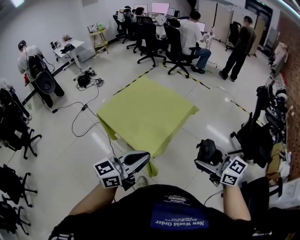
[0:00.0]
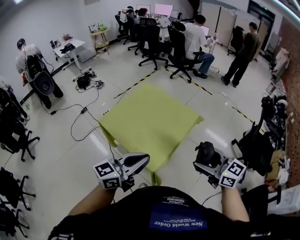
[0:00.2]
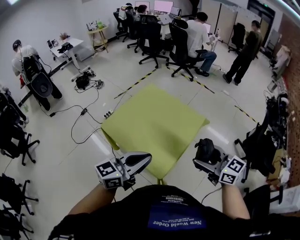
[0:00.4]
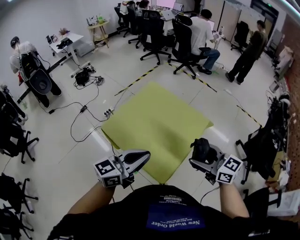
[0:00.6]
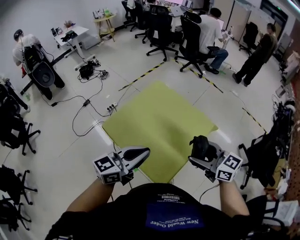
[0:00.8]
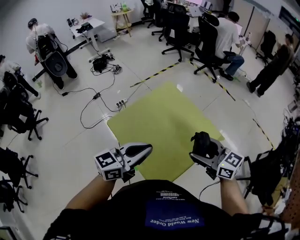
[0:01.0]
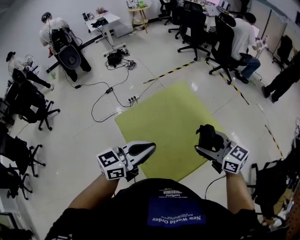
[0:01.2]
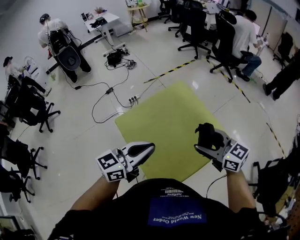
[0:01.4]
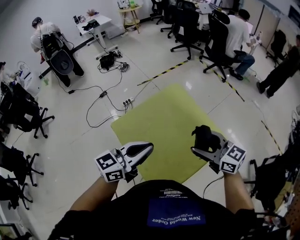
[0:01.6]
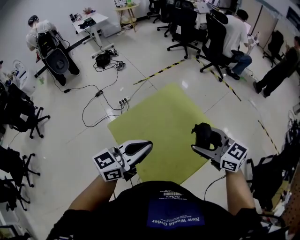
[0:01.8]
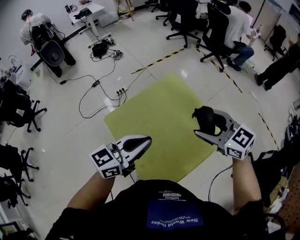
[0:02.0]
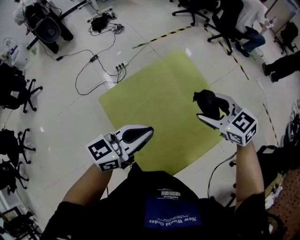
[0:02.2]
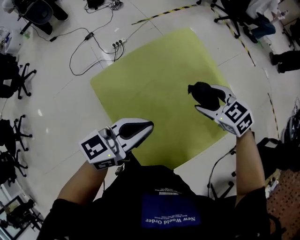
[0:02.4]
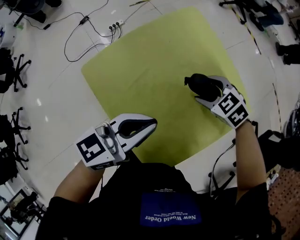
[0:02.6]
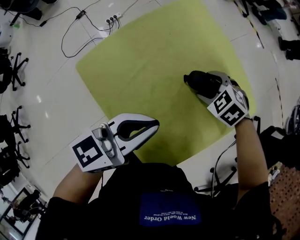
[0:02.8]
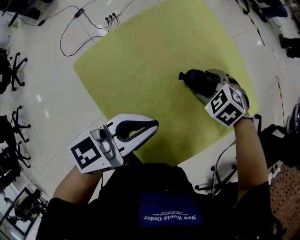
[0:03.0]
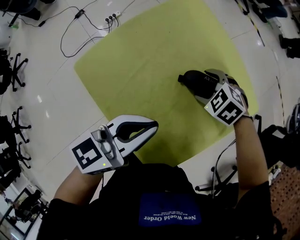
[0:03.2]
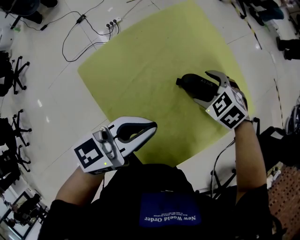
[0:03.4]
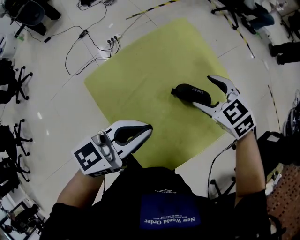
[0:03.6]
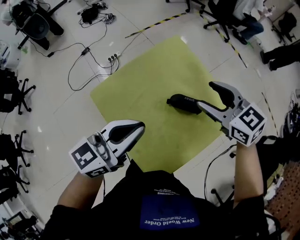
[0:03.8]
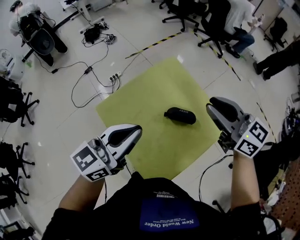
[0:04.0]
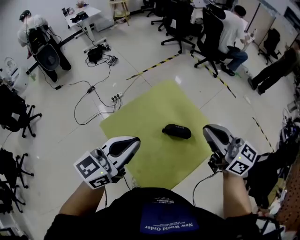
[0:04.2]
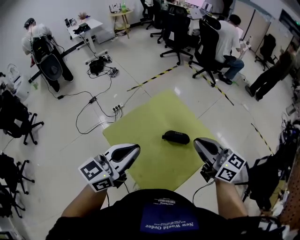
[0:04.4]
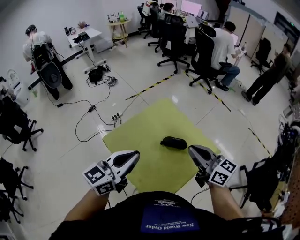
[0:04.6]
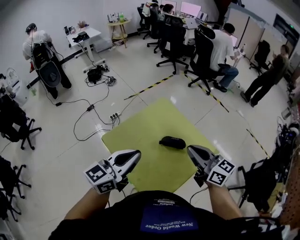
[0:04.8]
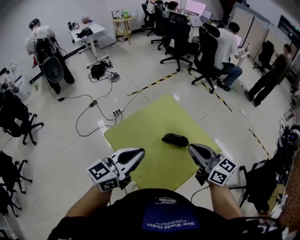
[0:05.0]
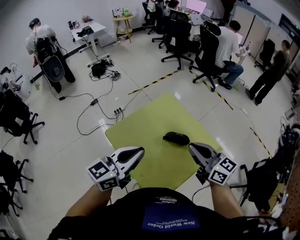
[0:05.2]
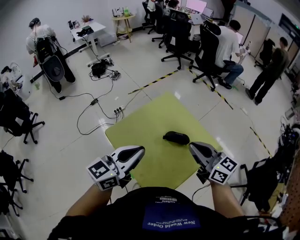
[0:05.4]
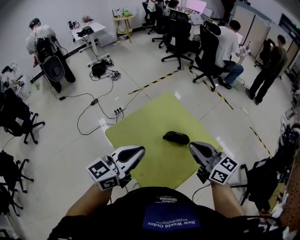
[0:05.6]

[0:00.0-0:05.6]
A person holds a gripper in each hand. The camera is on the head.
0:00.0 to 0:01.4: Both grippers travel together forward, some 35 cm. The right gripper changes its angle by roughly 20 degrees.
0:01.4 to 0:02.8: The right gripper moves downward, about 30 cm, and tilts its fingers roughly 60 degrees downward, while the left gripper shifts some 20 cm downward and forward.
0:02.8 to 0:04.2: The right gripper shifts roughly 40 cm upward, tips its fingers upward by some 70 degrees, and closes its fingers, while the left gripper goes about 20 cm upward.
0:04.2 to 0:05.6: The right gripper shifts approximately 5 cm backward.

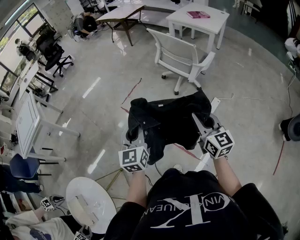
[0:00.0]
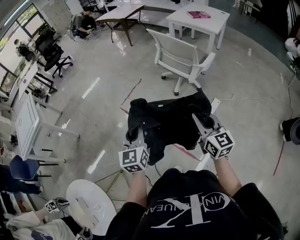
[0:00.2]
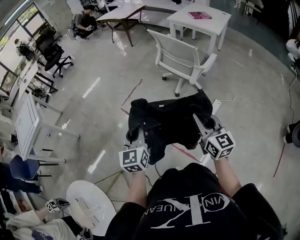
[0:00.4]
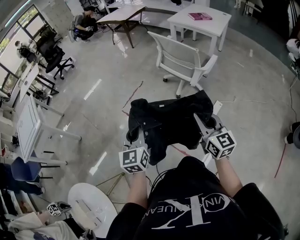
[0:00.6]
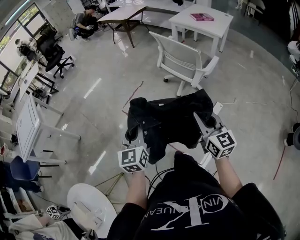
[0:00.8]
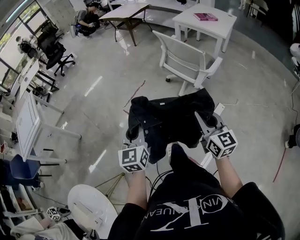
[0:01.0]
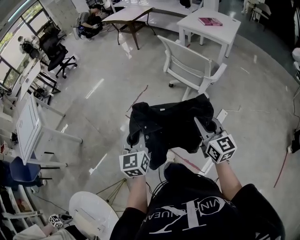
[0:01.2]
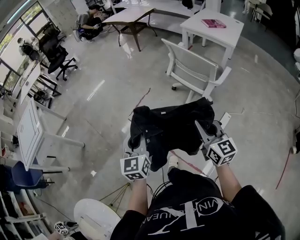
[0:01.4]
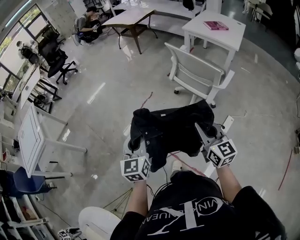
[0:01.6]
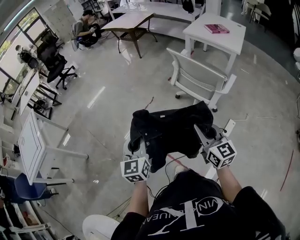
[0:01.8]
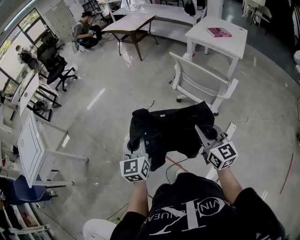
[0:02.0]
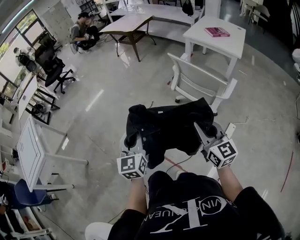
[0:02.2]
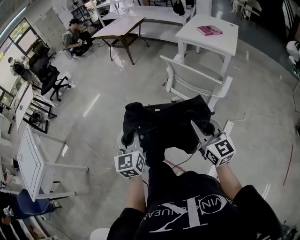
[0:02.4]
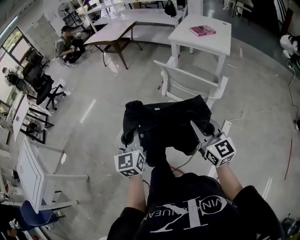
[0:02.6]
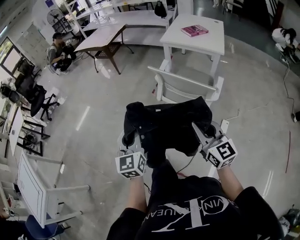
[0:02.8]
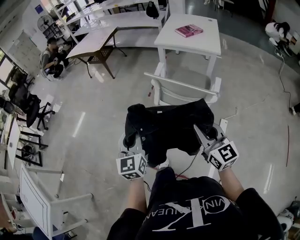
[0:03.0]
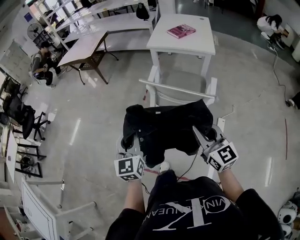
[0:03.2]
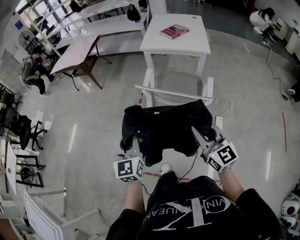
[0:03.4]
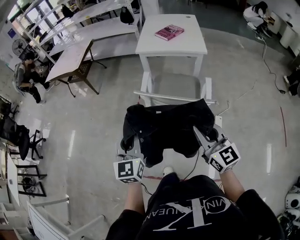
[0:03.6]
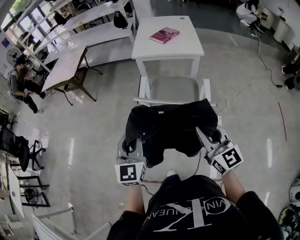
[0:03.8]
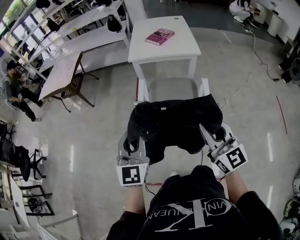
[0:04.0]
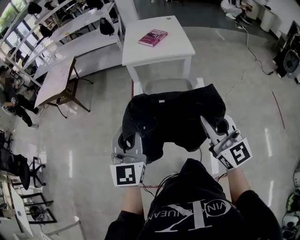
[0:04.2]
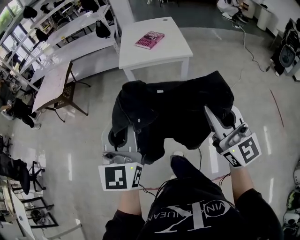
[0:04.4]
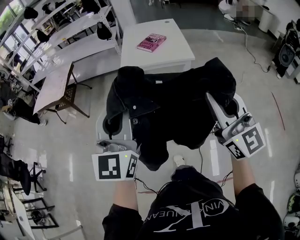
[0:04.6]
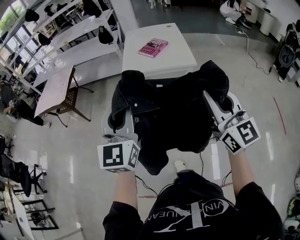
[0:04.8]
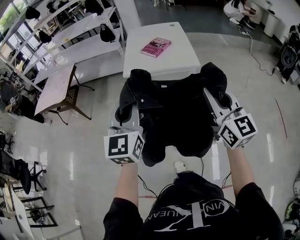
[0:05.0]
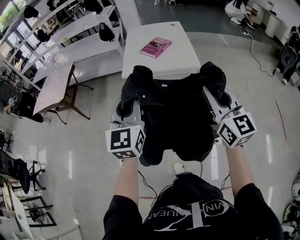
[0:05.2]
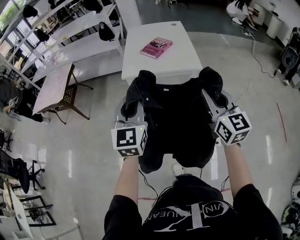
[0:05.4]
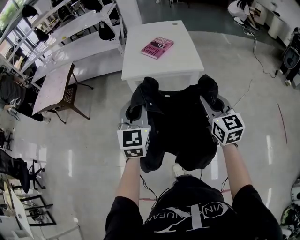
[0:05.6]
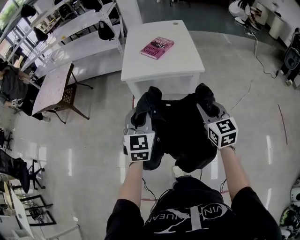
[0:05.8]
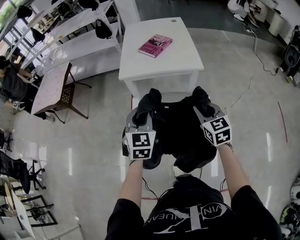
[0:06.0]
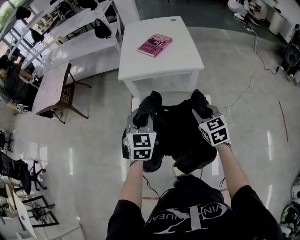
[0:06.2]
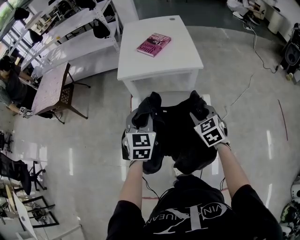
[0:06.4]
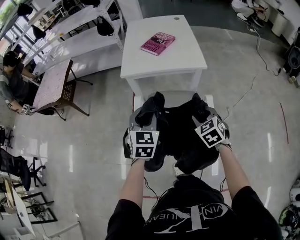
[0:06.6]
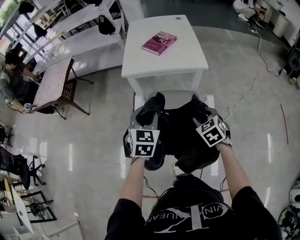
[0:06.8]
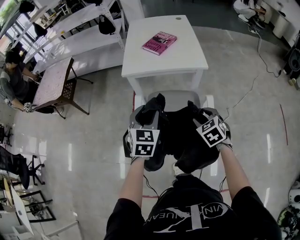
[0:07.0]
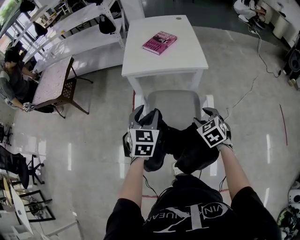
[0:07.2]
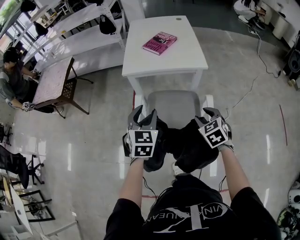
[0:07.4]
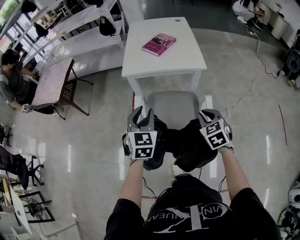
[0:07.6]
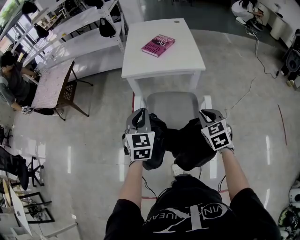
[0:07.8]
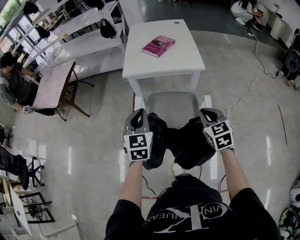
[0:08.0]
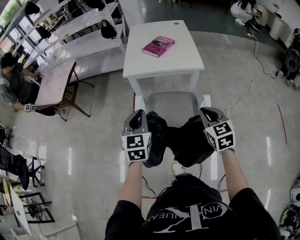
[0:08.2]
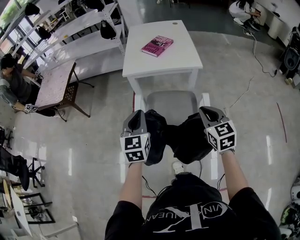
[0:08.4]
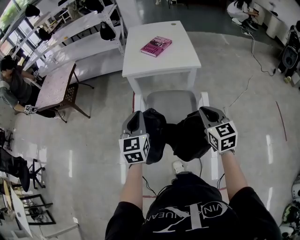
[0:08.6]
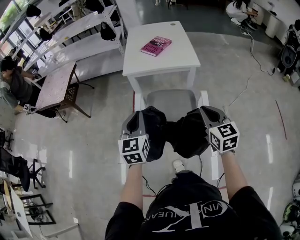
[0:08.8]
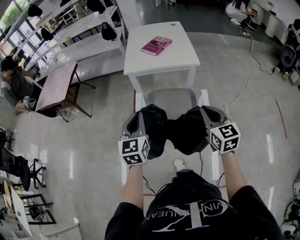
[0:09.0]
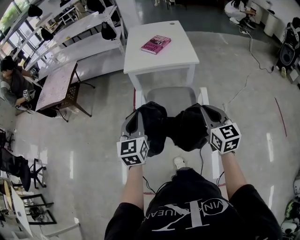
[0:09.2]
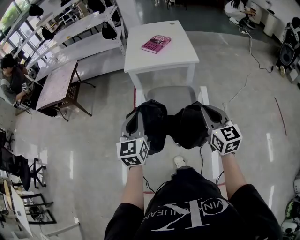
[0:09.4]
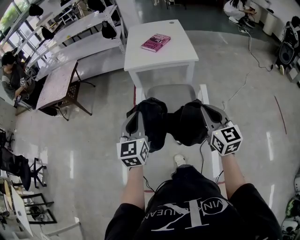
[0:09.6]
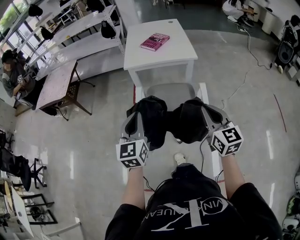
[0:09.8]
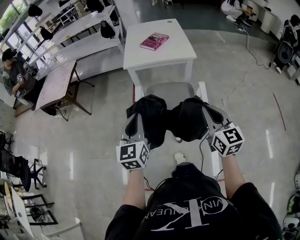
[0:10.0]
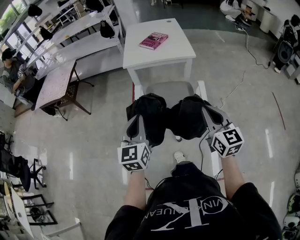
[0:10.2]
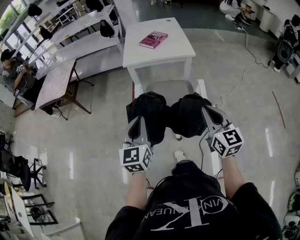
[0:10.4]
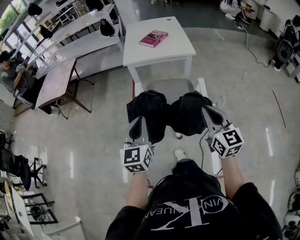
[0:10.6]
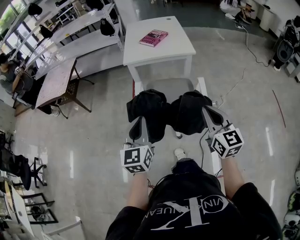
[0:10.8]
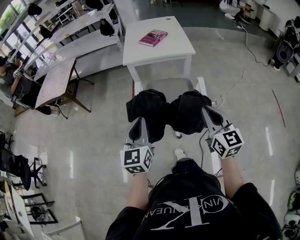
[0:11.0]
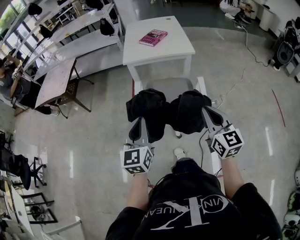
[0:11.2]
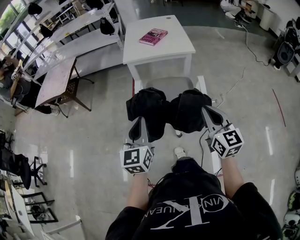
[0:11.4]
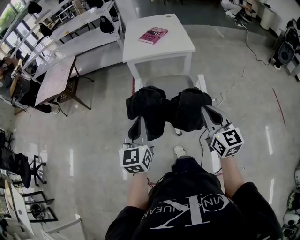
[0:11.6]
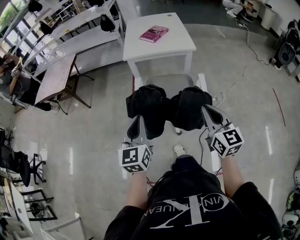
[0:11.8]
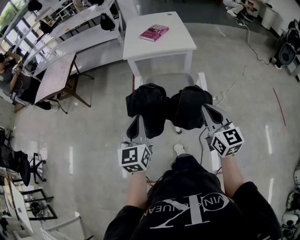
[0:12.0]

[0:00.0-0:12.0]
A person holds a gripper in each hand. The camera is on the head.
0:00.0 to 0:01.6: The two grippers go approximately 20 cm forward.
0:01.6 to 0:03.0: The left gripper goes about 30 cm forward, while the right gripper moves forward, some 20 cm.
0:03.0 to 0:04.4: The left gripper ends up about 30 cm from where it was, and turns by some 30 degrees, while the right gripper travels upward by some 15 cm, and turns by some 30 degrees.
0:04.4 to 0:06.0: Both grippers move forward and downward, about 35 cm. The left gripper changes its angle by approximately 30 degrees. Meanwhile the right gripper angles its fingers downward, by some 40 degrees.
0:06.0 to 0:07.6: The right gripper changes place by some 5 cm, turns by about 20 degrees, and opens and closes again.
0:07.6 to 0:09.0: The right gripper moves backward and upward, roughly 15 cm, and rotates approximately 30 degrees; the left gripper is displaced backward by roughly 10 cm, and closes up.
0:09.0 to 0:10.4: The two grippers go about 10 cm backward.
0:10.4 to 0:12.0: The grippers stay close to where they were, moving slightly.

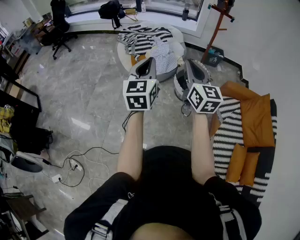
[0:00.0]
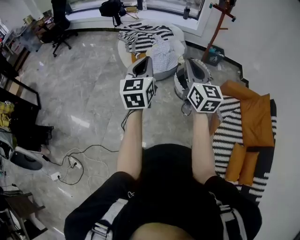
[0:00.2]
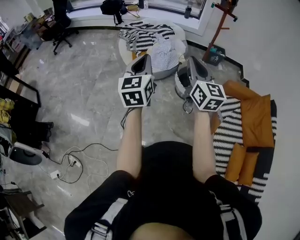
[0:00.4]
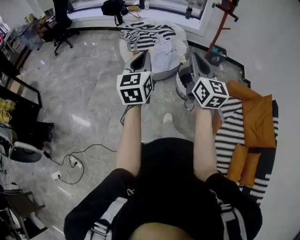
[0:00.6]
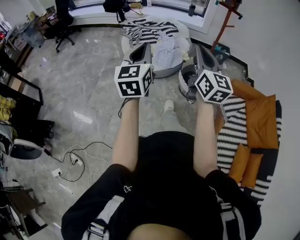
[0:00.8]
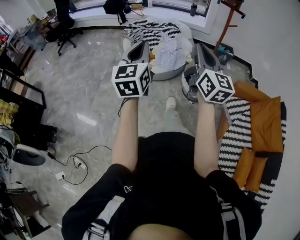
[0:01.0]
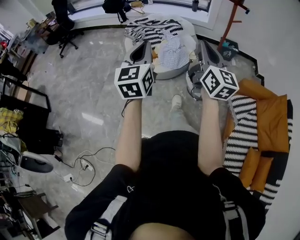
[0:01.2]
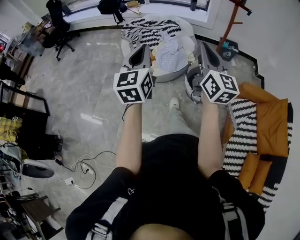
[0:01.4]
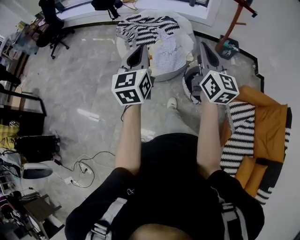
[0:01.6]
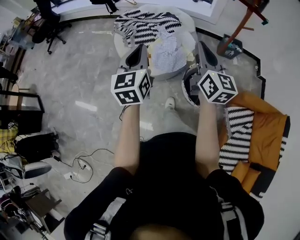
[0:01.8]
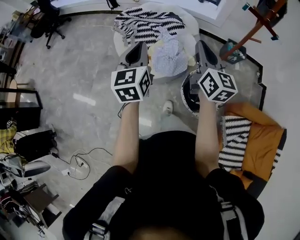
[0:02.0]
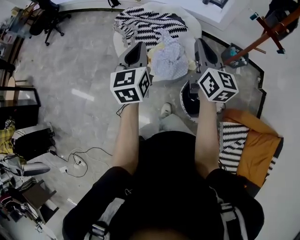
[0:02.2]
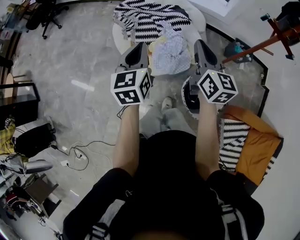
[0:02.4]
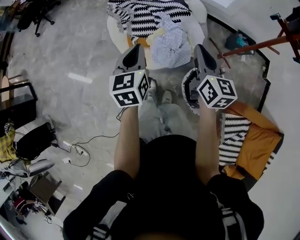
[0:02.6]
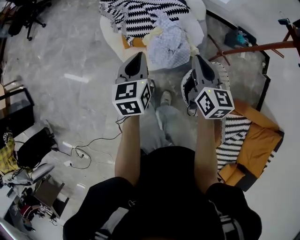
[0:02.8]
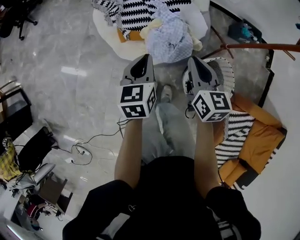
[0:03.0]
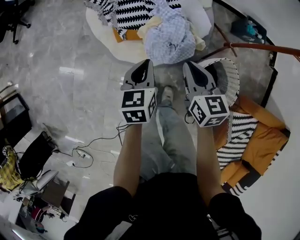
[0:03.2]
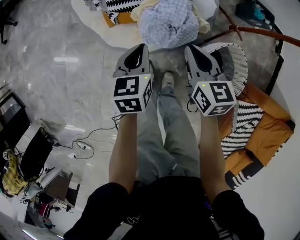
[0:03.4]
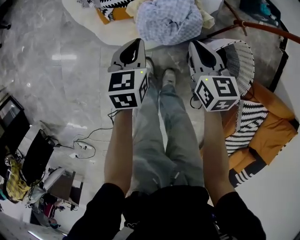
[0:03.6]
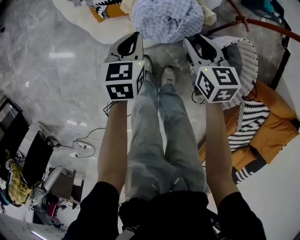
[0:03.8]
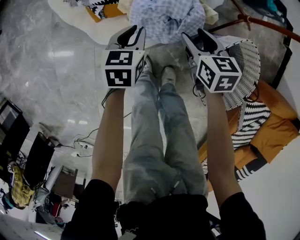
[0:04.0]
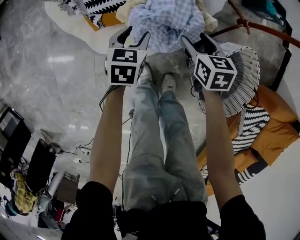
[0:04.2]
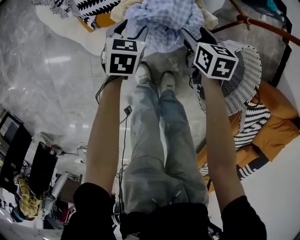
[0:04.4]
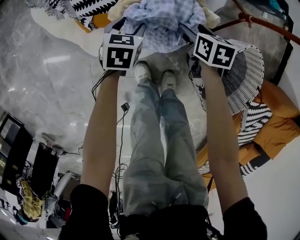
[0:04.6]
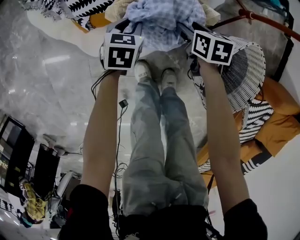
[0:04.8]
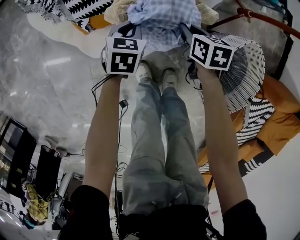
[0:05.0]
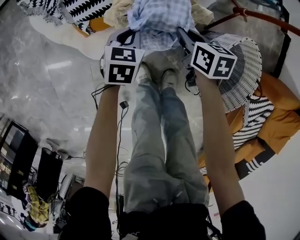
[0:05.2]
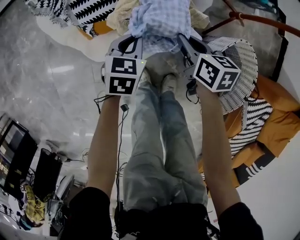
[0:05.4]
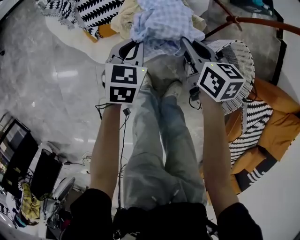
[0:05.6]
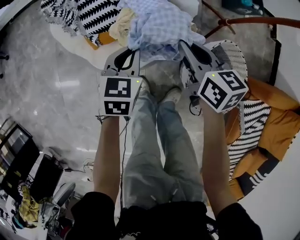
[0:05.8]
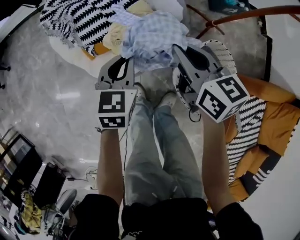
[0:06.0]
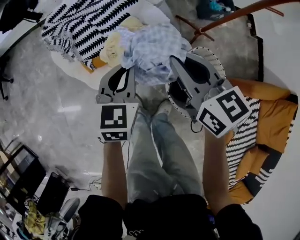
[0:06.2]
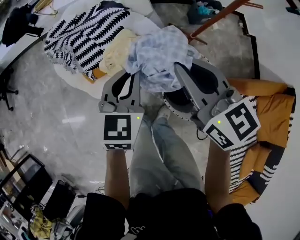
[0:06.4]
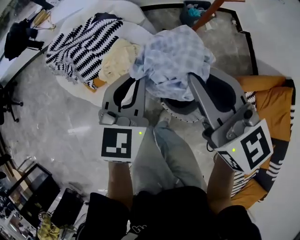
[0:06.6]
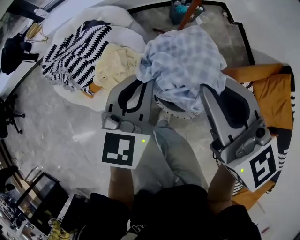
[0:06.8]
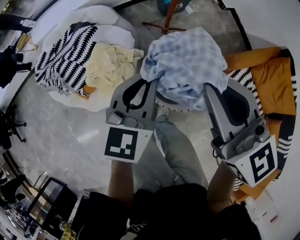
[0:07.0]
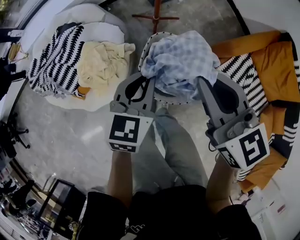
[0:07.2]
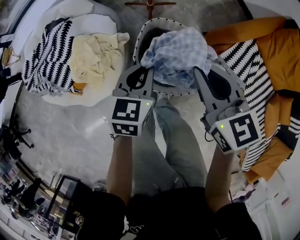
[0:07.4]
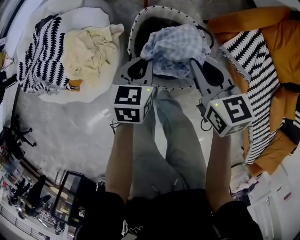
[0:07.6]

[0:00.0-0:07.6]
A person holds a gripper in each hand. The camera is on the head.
0:00.0 to 0:01.6: The two grippers go about 25 cm forward.
0:01.6 to 0:03.0: Both grippers travel together forward and downward, some 40 cm. The right gripper tilts its fingers roughly 30 degrees downward. Meanwhile the left gripper changes its angle by some 30 degrees.
0:03.0 to 0:04.6: Both grippers move downward, approximately 40 cm. The left gripper swivels about 40 degrees, and opens up, while the right gripper angles its fingers downward, by some 30 degrees, and opens its fingers.
0:04.6 to 0:06.0: Both grippers move upward, about 30 cm. The right gripper points its fingers roughly 30 degrees further upward, and closes up, while the left gripper changes its angle by about 20 degrees, and closes its fingers.
0:06.0 to 0:07.6: The right gripper reaches approximately 30 cm upward, then returns, and changes its angle by some 30 degrees. The left gripper moves roughly 25 cm upward and comes back, and swivels approximately 30 degrees.
